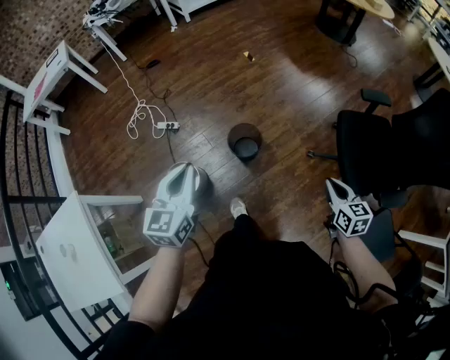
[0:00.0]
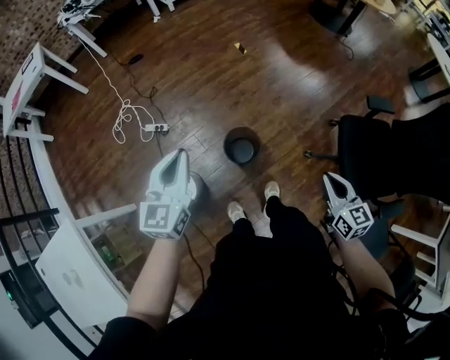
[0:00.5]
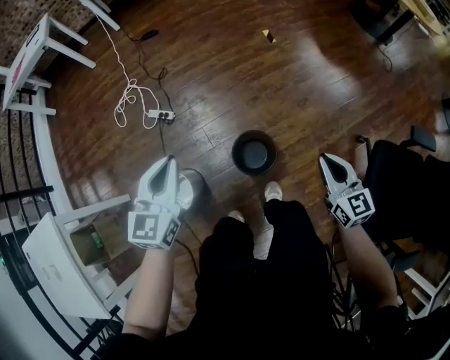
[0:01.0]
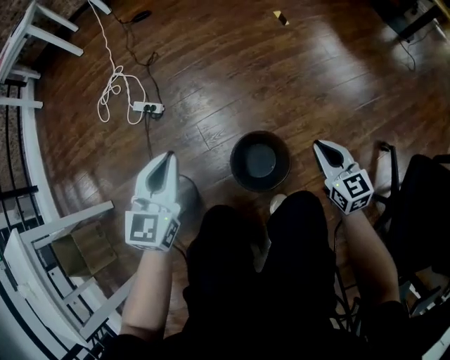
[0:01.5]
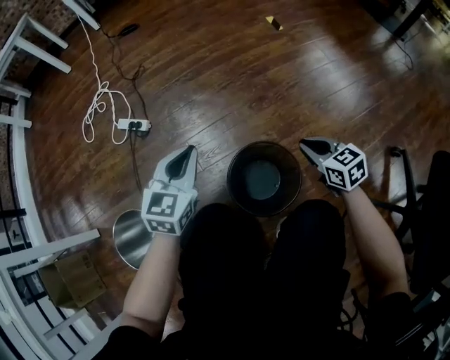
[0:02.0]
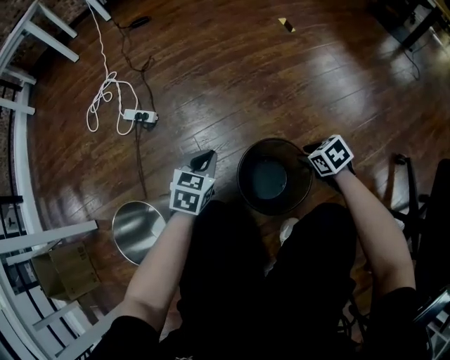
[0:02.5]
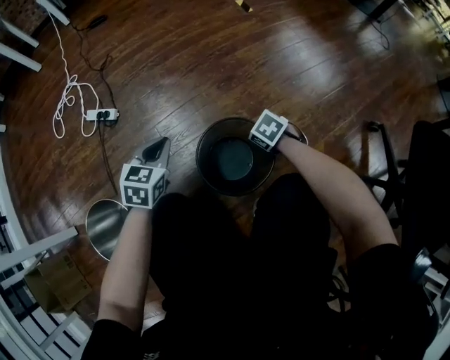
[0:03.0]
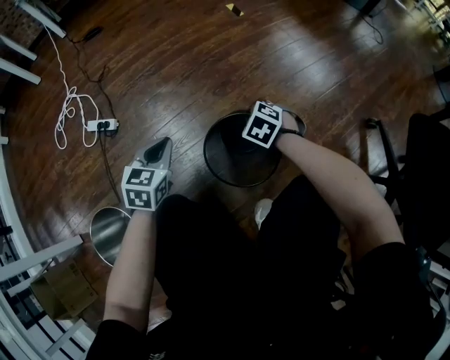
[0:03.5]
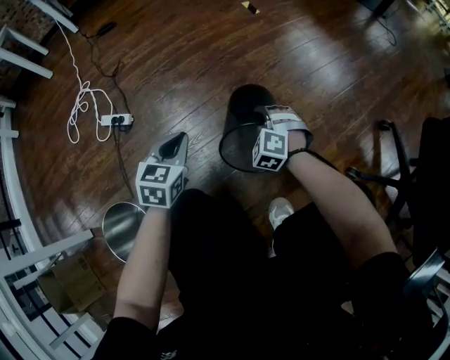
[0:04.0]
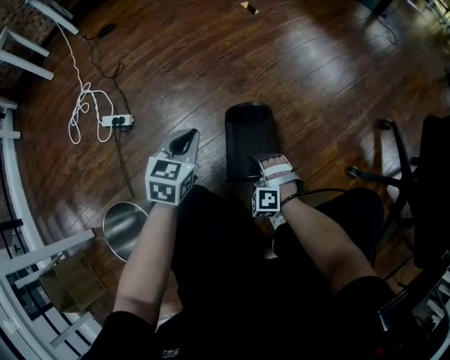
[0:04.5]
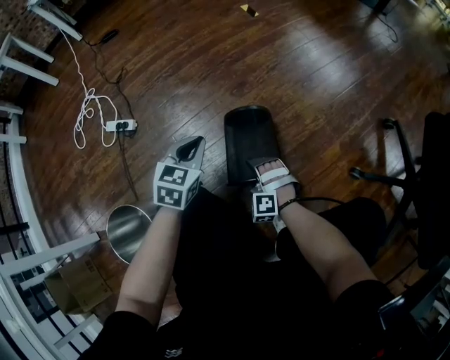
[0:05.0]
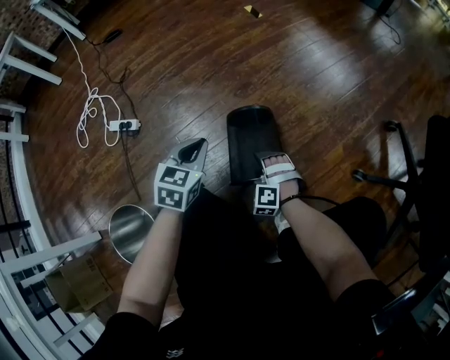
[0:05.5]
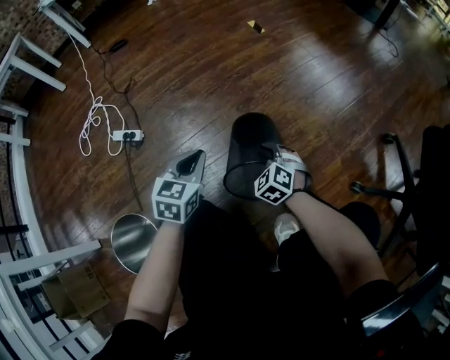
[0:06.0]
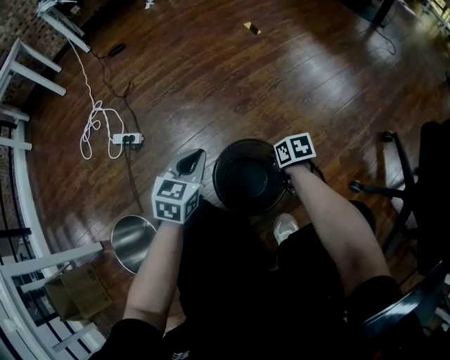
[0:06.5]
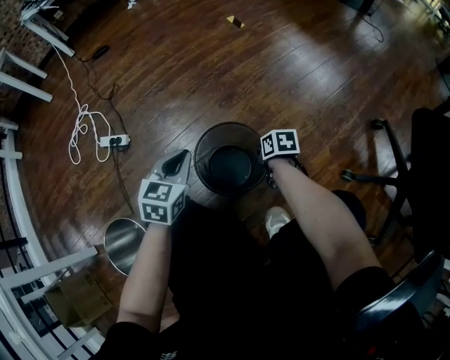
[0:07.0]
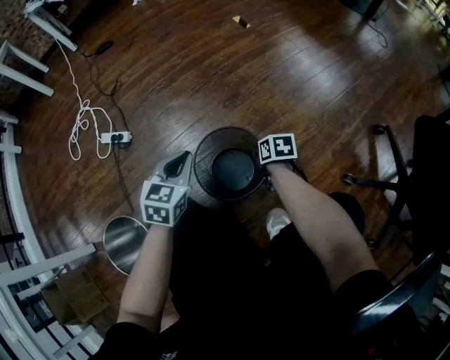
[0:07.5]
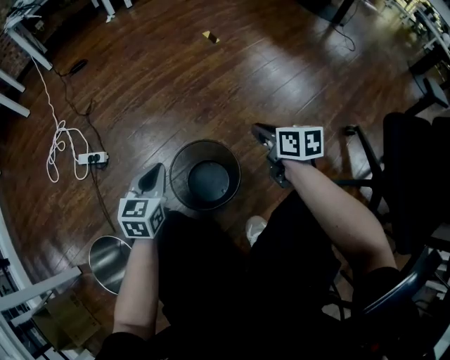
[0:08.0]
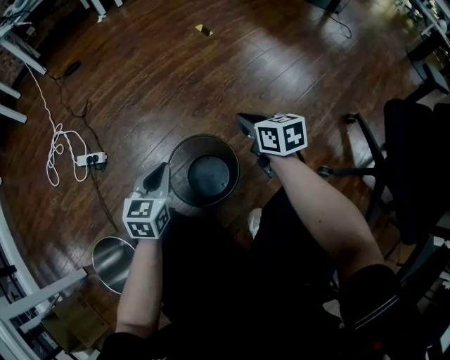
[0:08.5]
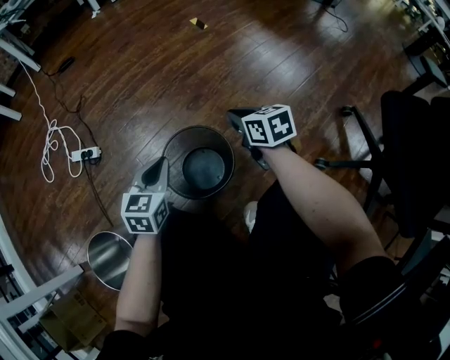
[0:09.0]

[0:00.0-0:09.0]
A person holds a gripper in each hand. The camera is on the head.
0.0 to 2.0 s: The two grippers go some 60 cm downward and forward. The right gripper changes its angle by approximately 40 degrees.
2.0 to 4.5 s: The right gripper moves up and down over approximately 15 cm, changing direction 2 times, twists about 60 degrees counterclockwise, seen from behind, and opens; the left gripper is displaced downward by some 5 cm.
4.5 to 7.0 s: The right gripper reaches some 5 cm upward, then returns, rolls clockwise, seen from behind, by about 100 degrees, and closes.
7.0 to 9.0 s: The right gripper travels upward by some 15 cm, and changes its angle by roughly 30 degrees.

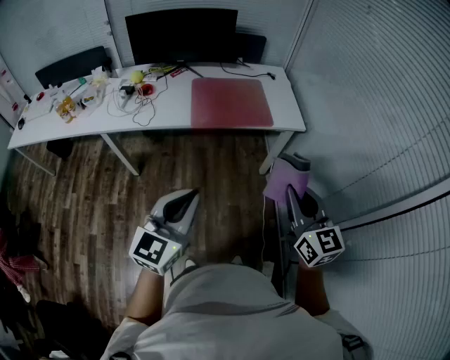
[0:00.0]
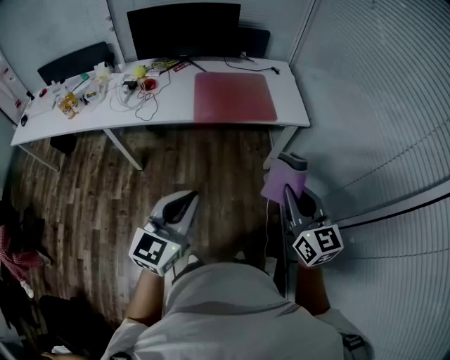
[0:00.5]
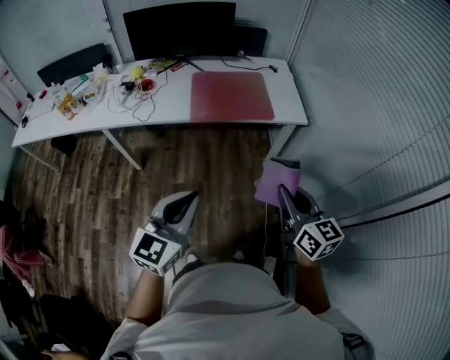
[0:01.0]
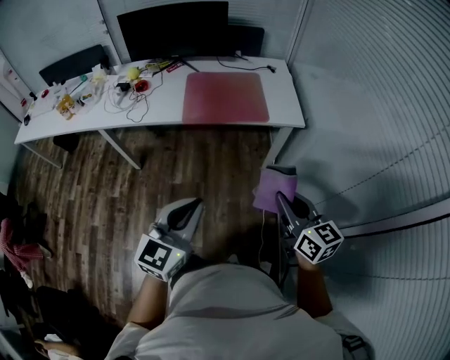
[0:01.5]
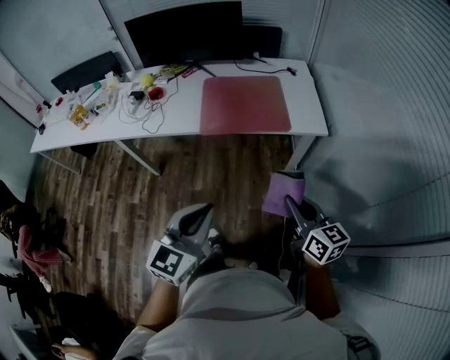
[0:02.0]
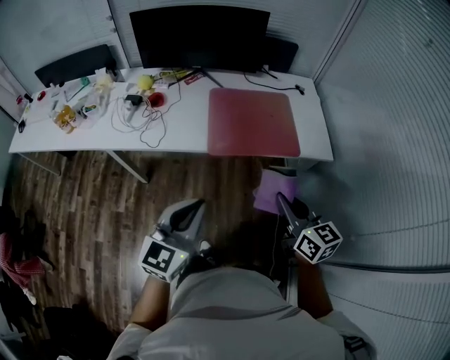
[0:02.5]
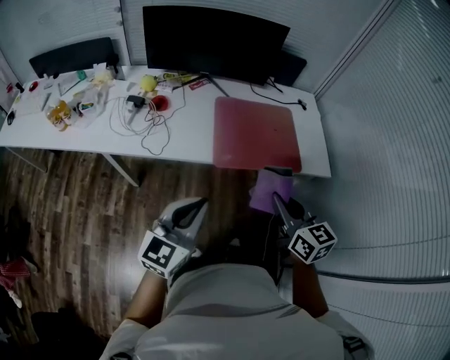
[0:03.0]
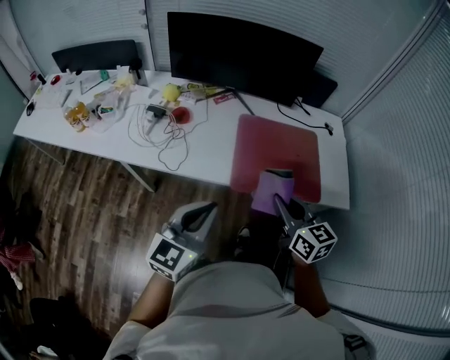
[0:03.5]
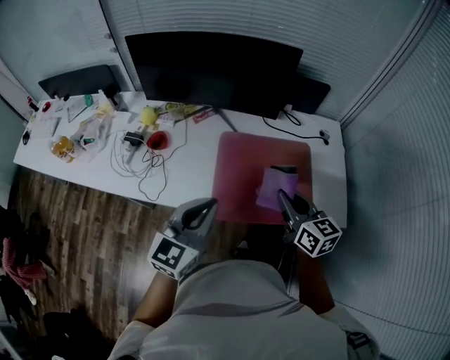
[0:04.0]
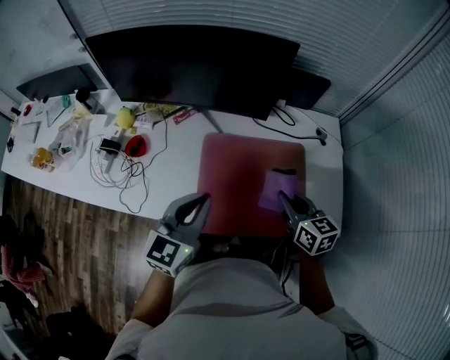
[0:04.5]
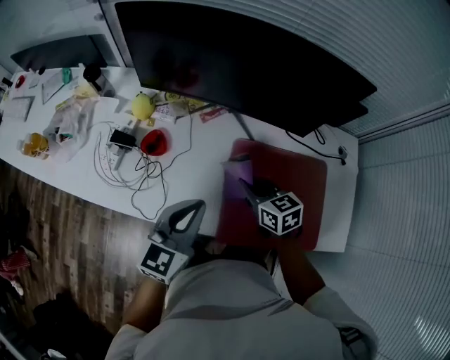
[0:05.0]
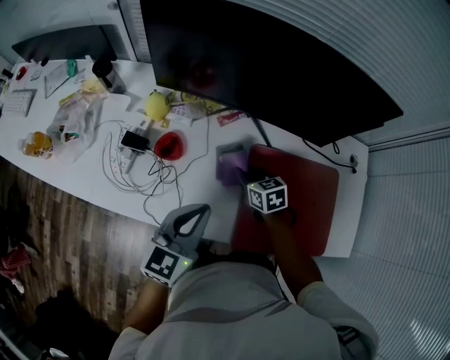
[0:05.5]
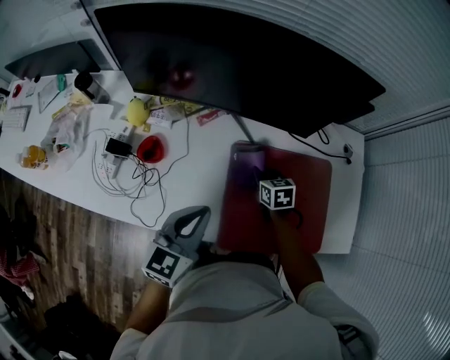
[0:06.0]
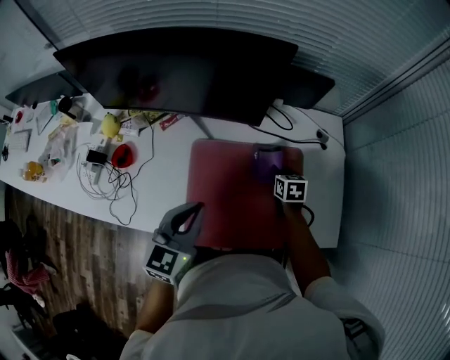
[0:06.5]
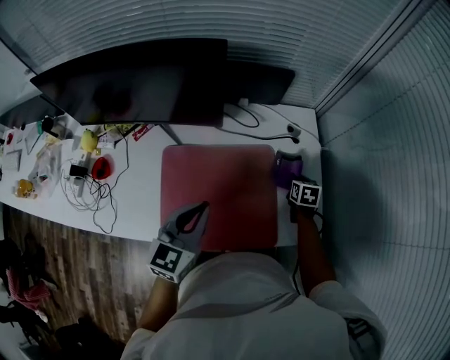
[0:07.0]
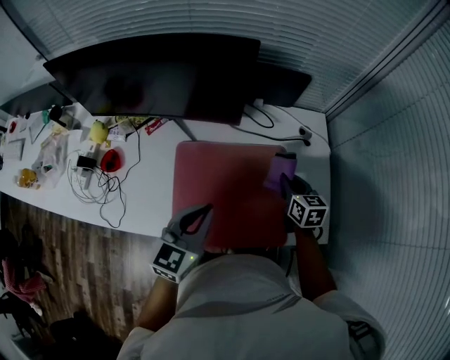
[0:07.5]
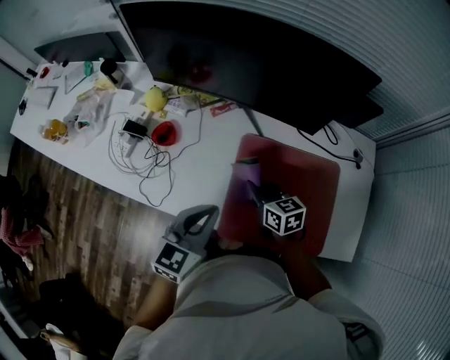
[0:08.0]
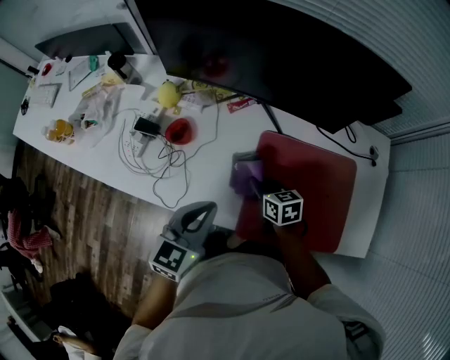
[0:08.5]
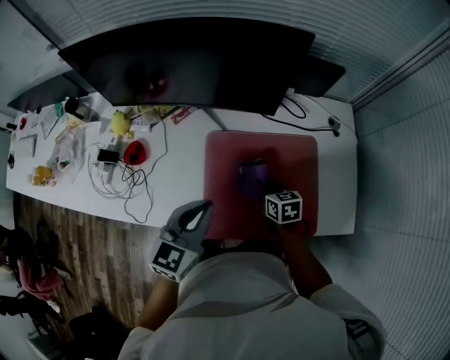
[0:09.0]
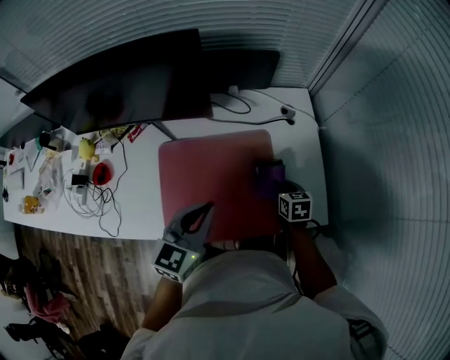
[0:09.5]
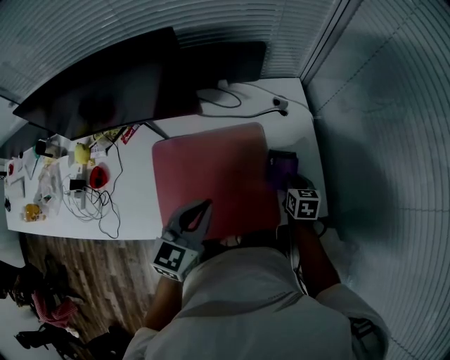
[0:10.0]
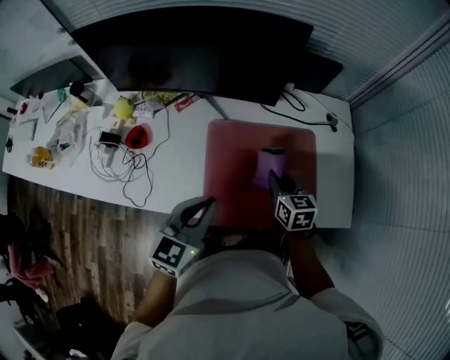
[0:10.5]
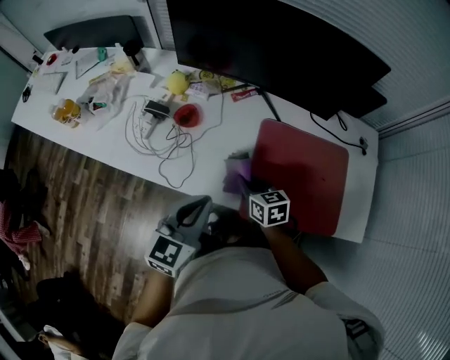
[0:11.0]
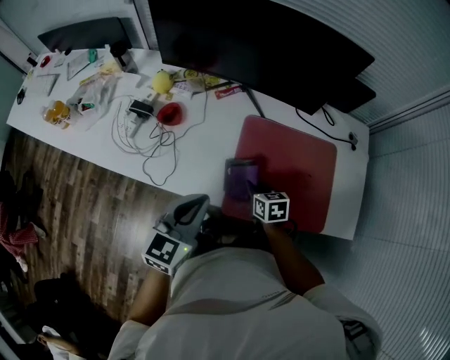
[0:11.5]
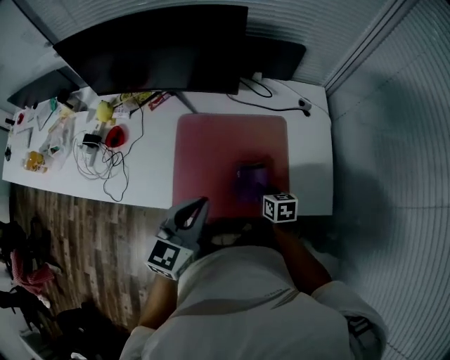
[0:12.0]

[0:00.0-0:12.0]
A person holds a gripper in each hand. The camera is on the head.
0.0 to 2.0 s: The left gripper shifts roughly 10 cm to the right, forward and downward. The right gripper shifts about 15 cm downward, forward and to the right, and swivels roughly 30 degrees.
2.0 to 4.0 s: Both grippers are carried forward, roughly 50 cm.
4.0 to 6.0 s: The right gripper swings left and right, approximately 30 cm each way, with 2 reversals, and tilts its fingers some 30 degrees downward. Meanwhile the left gripper swings left and right, roughly 20 cm each way, with 2 reversals.
6.0 to 8.0 s: The right gripper changes its angle by about 20 degrees.
8.0 to 10.0 s: The right gripper shifts by roughly 50 cm, and turns by some 40 degrees, while the left gripper ends up about 30 cm from where it was.
10.0 to 12.0 s: The right gripper goes upward and returns, about 10 cm each way, and turns by some 20 degrees.

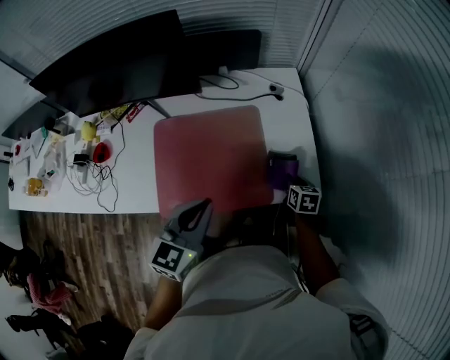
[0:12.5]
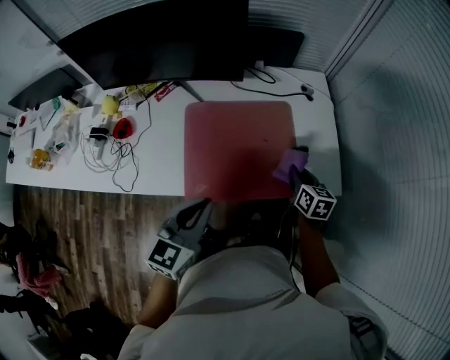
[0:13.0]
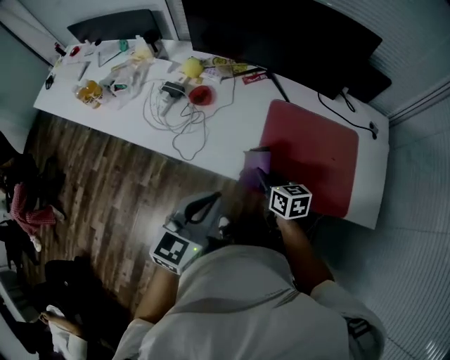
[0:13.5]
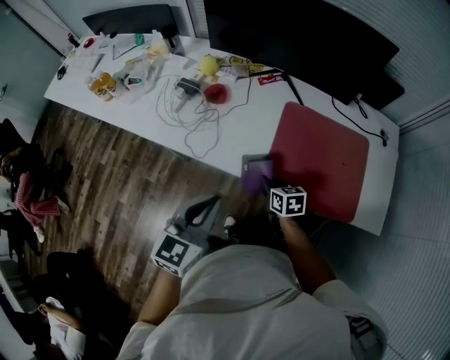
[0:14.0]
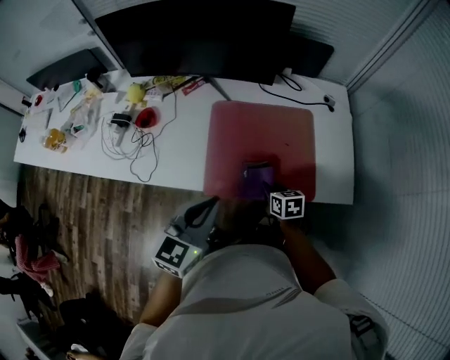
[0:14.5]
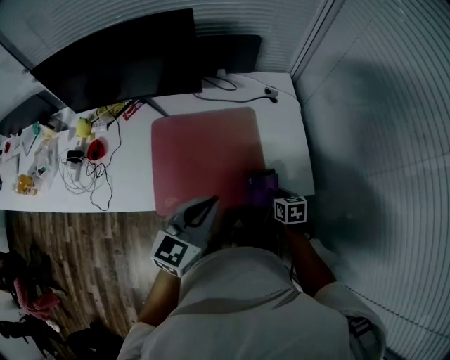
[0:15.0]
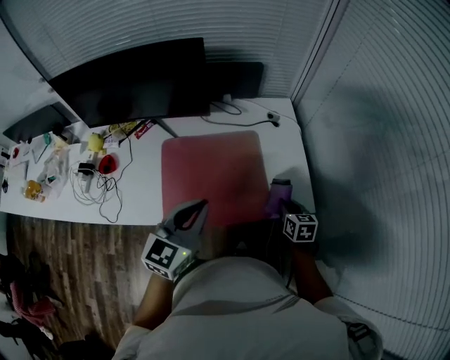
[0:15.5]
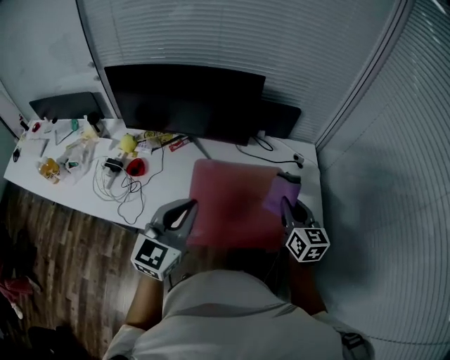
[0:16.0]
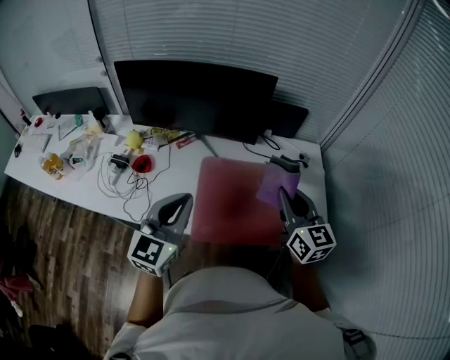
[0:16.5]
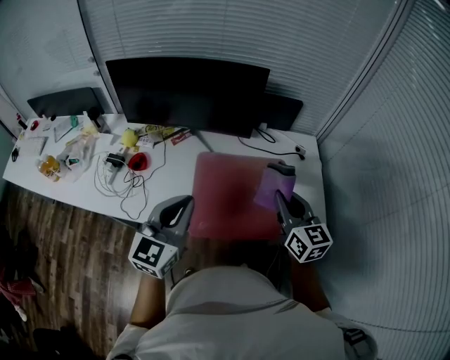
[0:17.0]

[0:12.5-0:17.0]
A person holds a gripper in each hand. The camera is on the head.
12.5 to 14.5 s: The right gripper moves about 10 cm upward and comes back, and swivels about 20 degrees.
14.5 to 17.0 s: The right gripper heads upward, covering approximately 30 cm, and tilts its fingers roughly 40 degrees upward. Meanwhile the left gripper heads upward, covering about 10 cm, and reaches about 20 cm to the right, then returns.

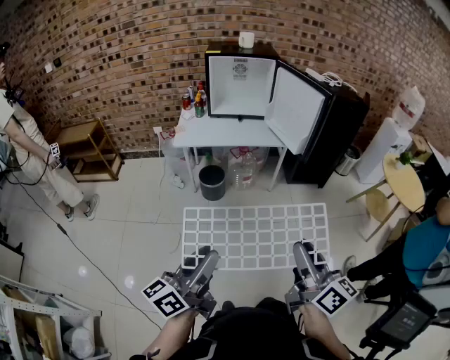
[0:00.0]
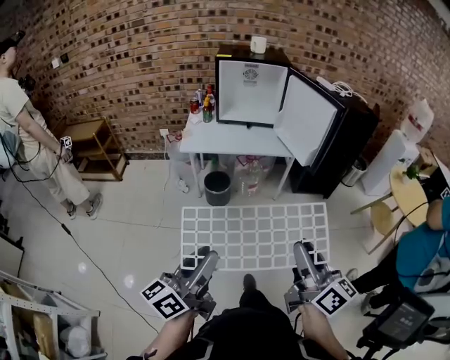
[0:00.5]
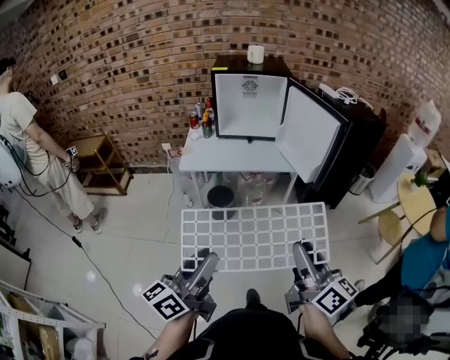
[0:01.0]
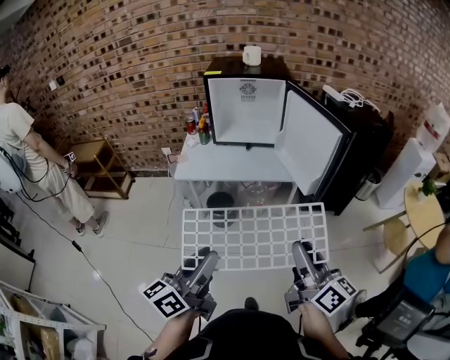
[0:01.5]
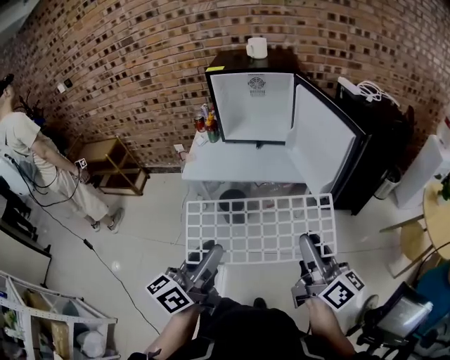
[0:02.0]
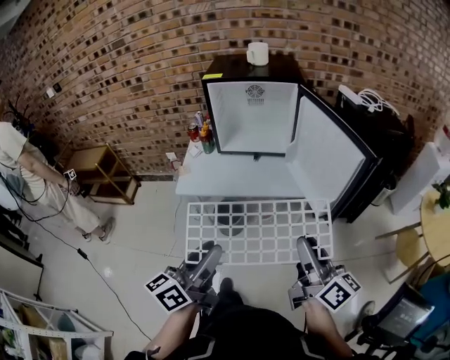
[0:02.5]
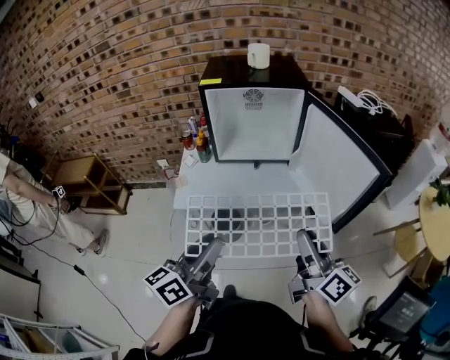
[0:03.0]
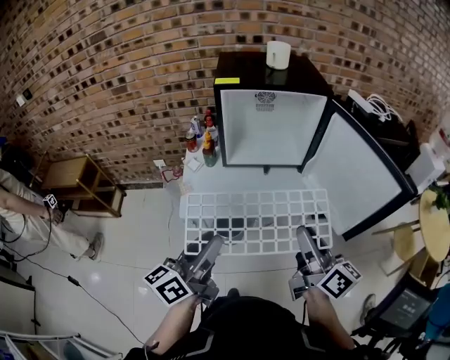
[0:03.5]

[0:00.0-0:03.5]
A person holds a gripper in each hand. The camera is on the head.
0.0 to 2.0 s: Both grippers travel together forward, some 30 cm.
2.0 to 3.5 s: Both grippers move forward and to the left, roughly 30 cm.
